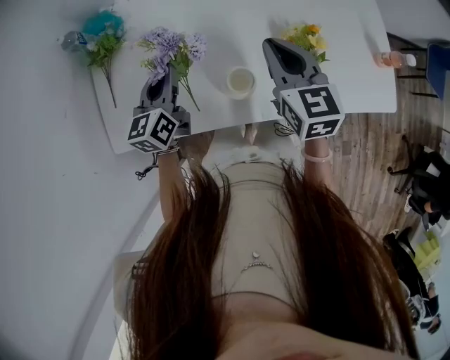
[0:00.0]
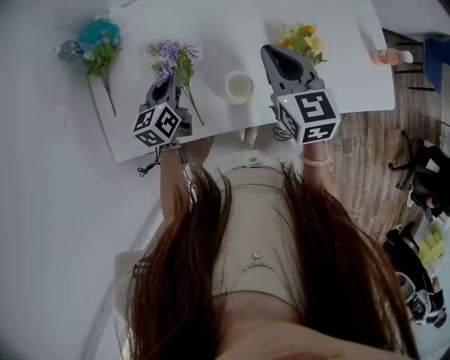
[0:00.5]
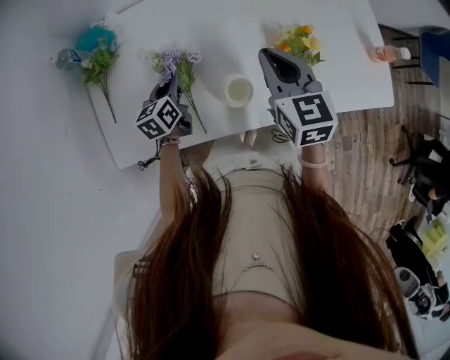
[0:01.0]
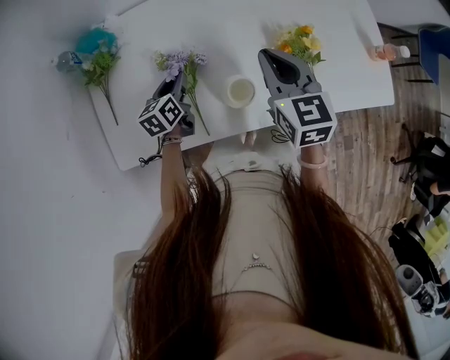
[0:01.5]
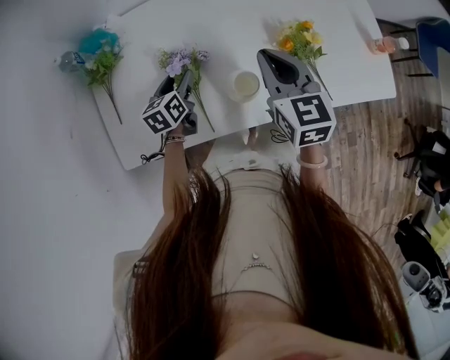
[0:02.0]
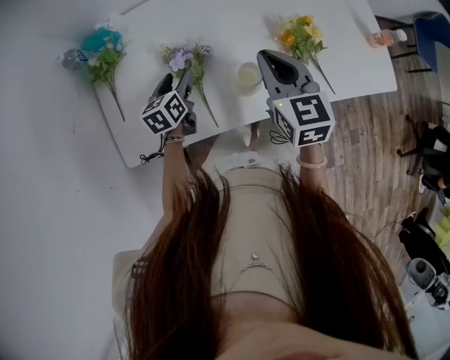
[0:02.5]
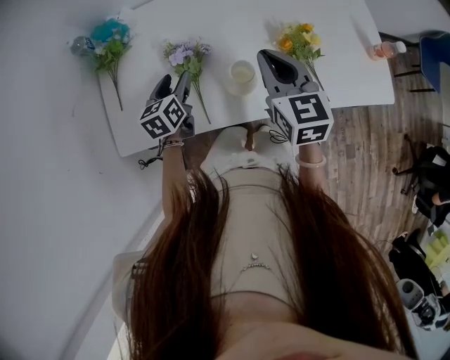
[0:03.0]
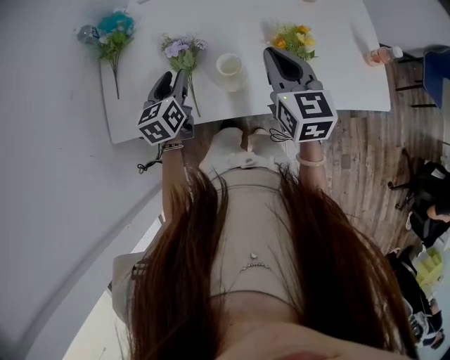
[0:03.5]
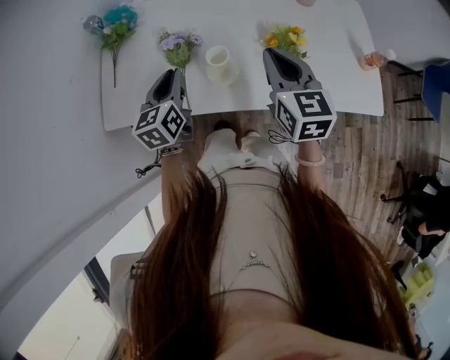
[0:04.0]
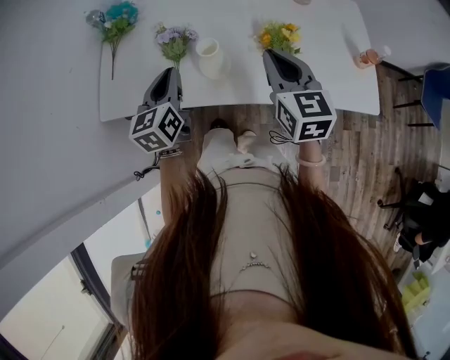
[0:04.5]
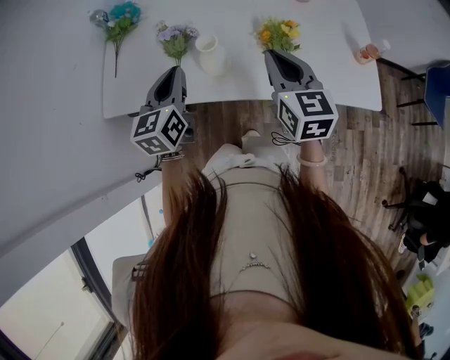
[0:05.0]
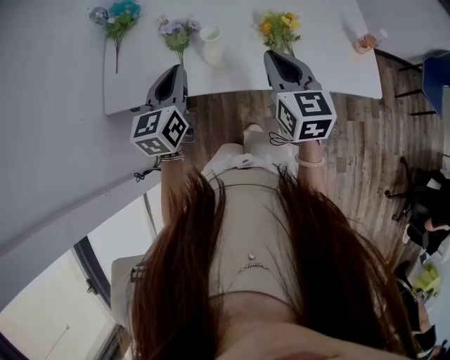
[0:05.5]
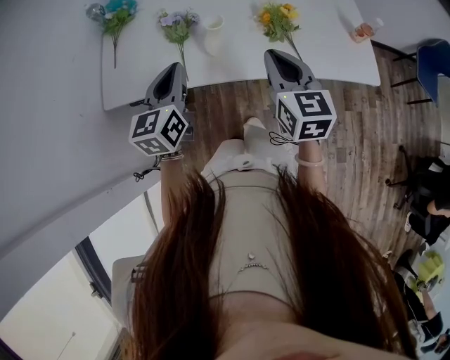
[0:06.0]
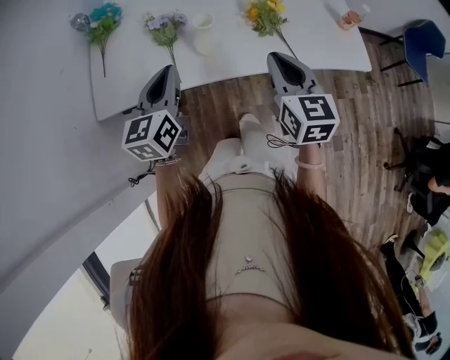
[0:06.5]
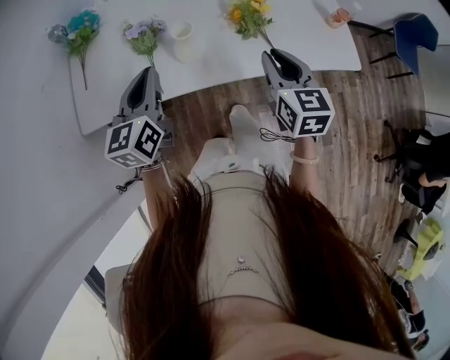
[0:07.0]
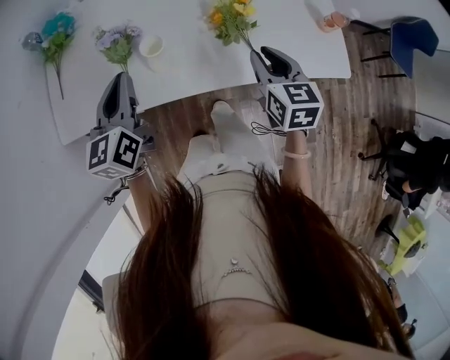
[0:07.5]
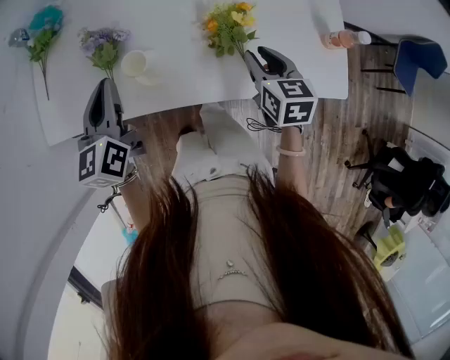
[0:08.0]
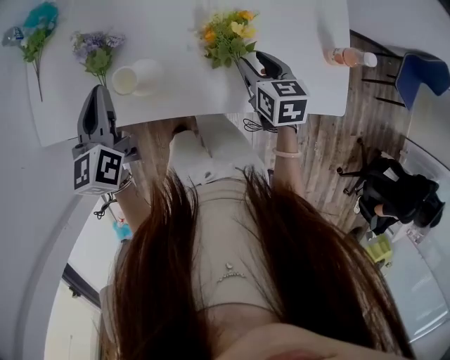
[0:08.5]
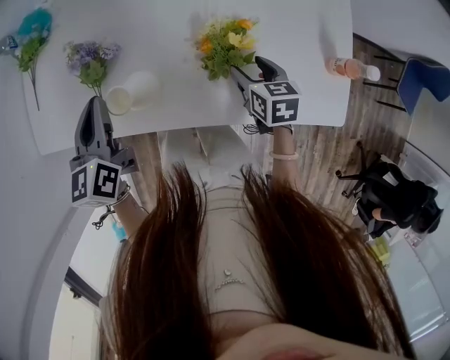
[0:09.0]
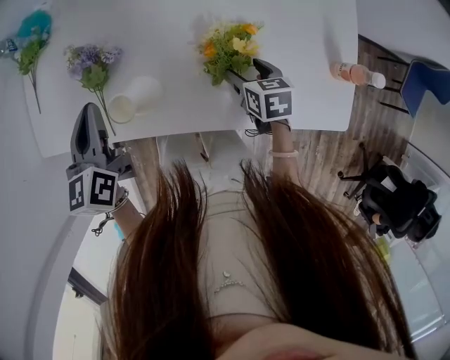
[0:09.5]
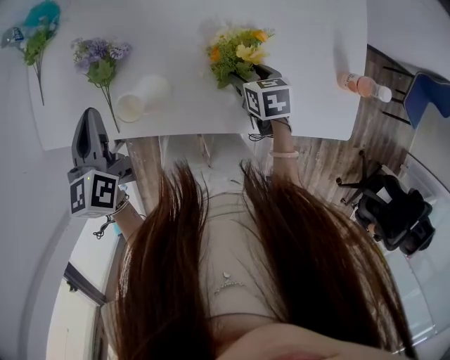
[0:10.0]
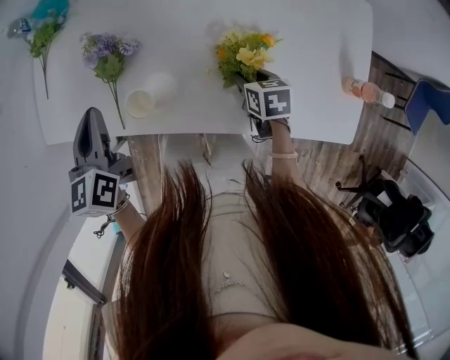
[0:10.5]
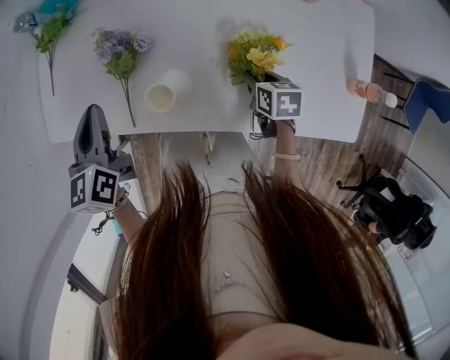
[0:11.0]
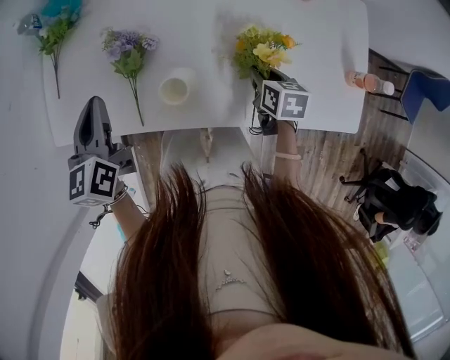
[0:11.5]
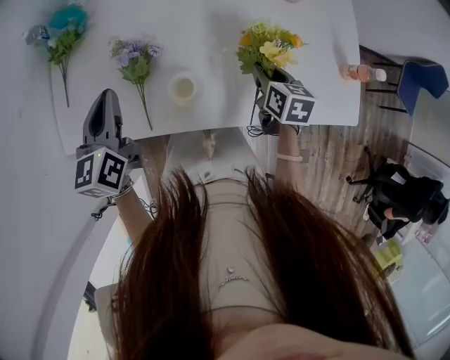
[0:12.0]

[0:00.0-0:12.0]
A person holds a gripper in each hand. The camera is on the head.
0.0 to 2.0 s: The left gripper goes about 10 cm downward, turns by approximately 20 degrees, and opens up.
2.0 to 4.0 s: The left gripper heads upward and backward, covering roughly 20 cm, and swivels some 20 degrees. The right gripper is displaced backward and to the right by some 10 cm.
4.0 to 6.0 s: The left gripper shifts some 15 cm backward and upward; the right gripper moves backward, roughly 10 cm.
6.0 to 8.0 s: The left gripper heads forward, covering approximately 15 cm. The right gripper travels forward, downward and to the right by approximately 25 cm, and rotates roughly 20 degrees.
8.0 to 10.0 s: The right gripper shifts roughly 15 cm downward and forward, swivels roughly 30 degrees, and opens up. Meanwhile the left gripper shifts by some 5 cm.
10.0 to 12.0 s: The left gripper shifts some 5 cm to the left. Meanwhile the right gripper heads upward, covering some 10 cm, swivels about 30 degrees, and closes its fingers.

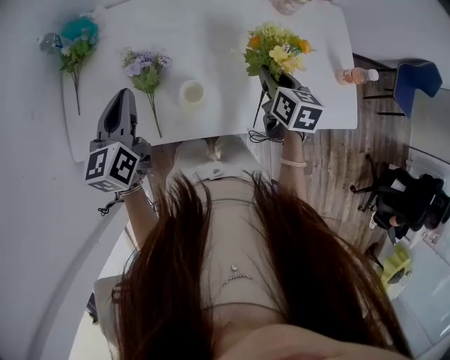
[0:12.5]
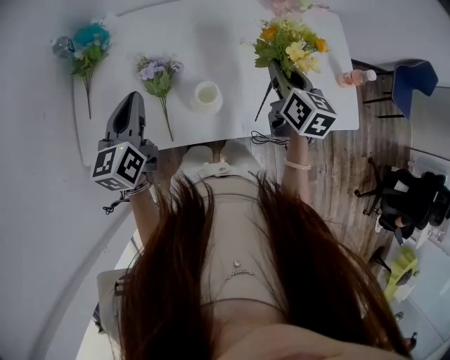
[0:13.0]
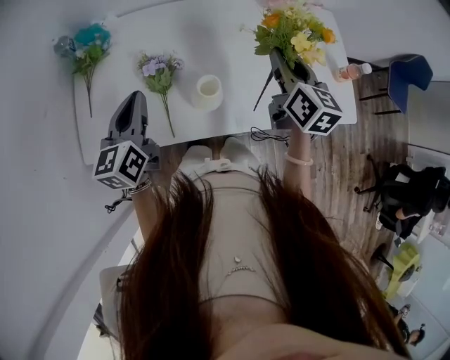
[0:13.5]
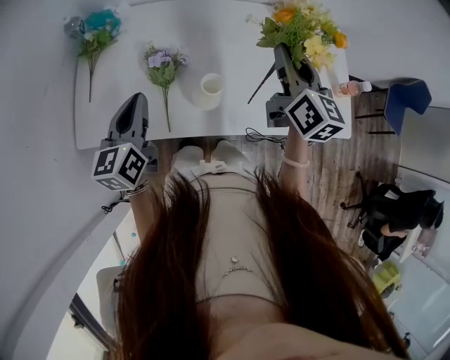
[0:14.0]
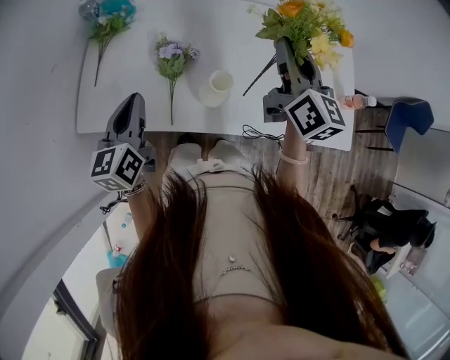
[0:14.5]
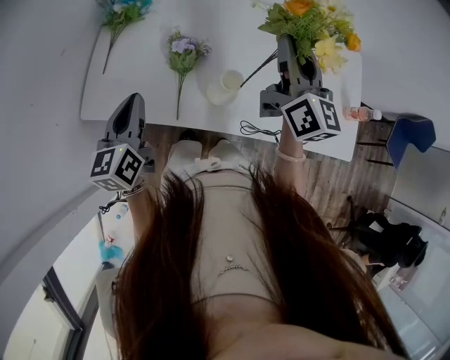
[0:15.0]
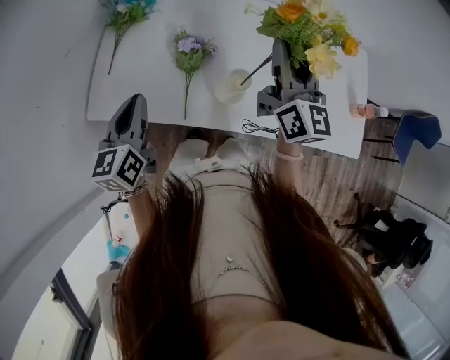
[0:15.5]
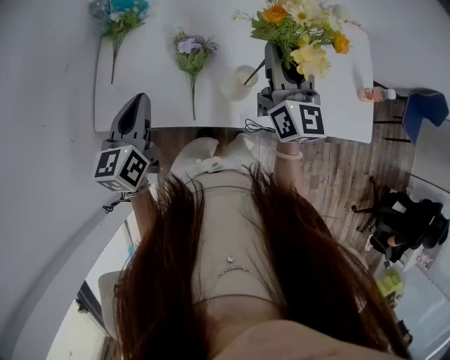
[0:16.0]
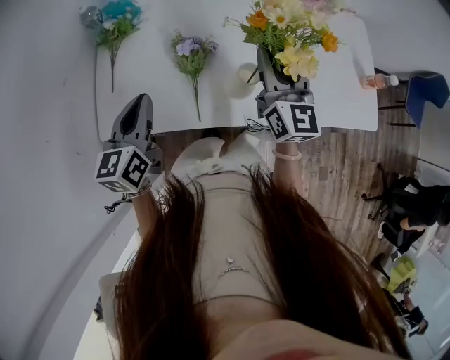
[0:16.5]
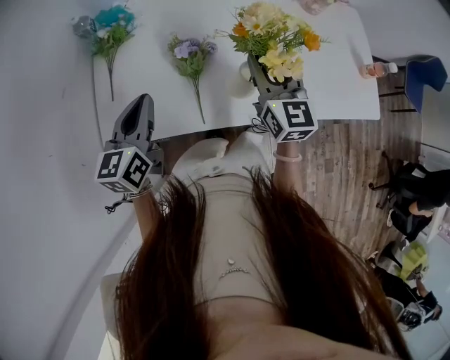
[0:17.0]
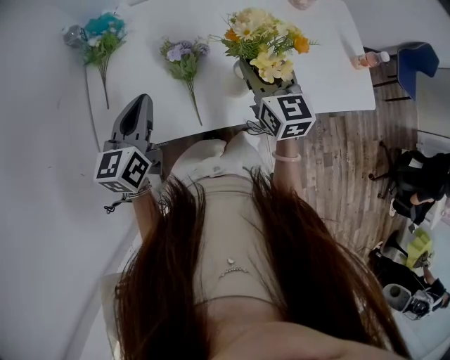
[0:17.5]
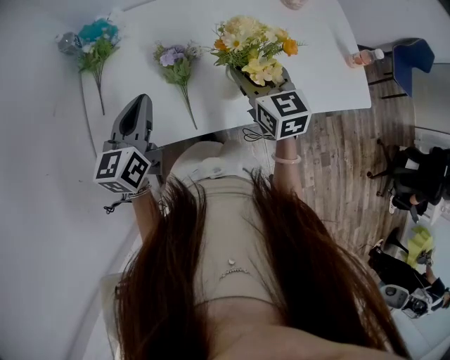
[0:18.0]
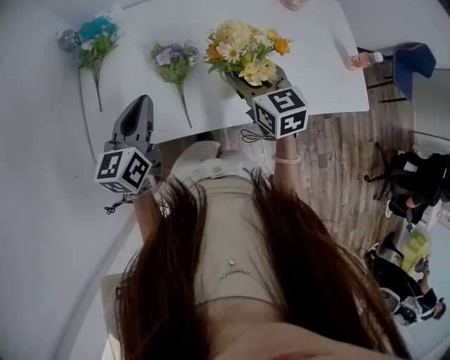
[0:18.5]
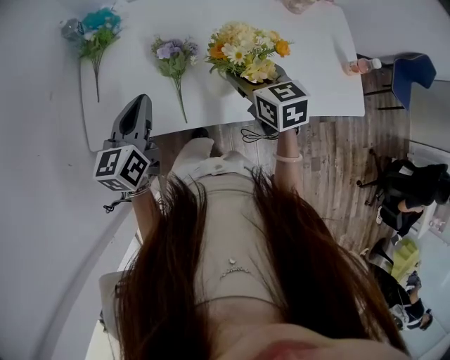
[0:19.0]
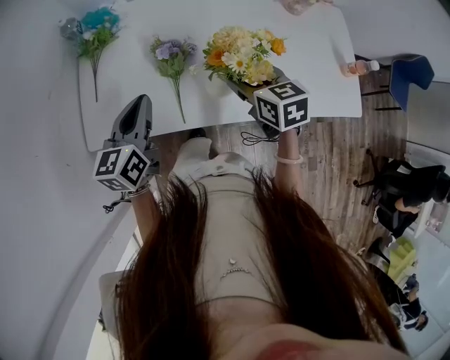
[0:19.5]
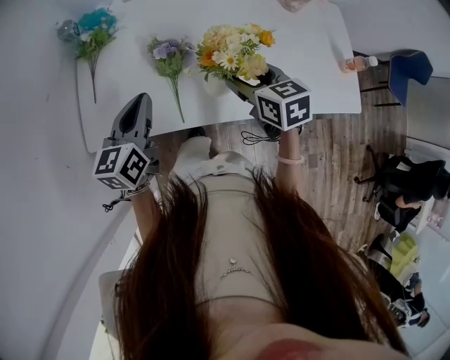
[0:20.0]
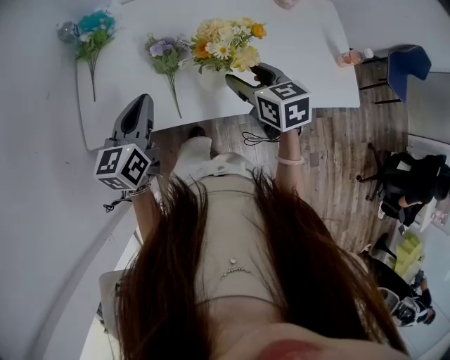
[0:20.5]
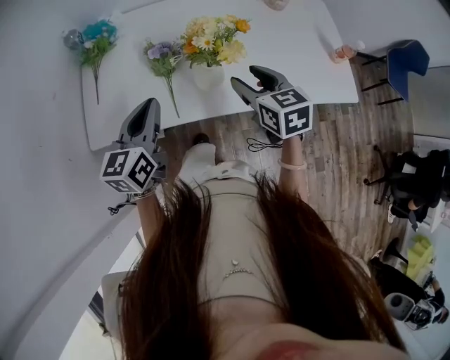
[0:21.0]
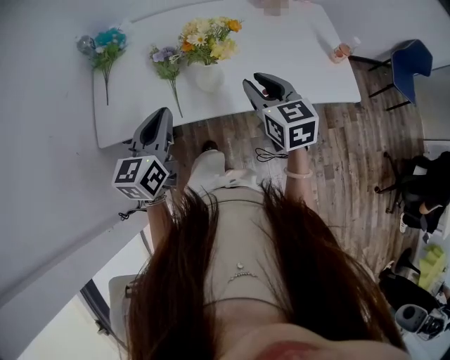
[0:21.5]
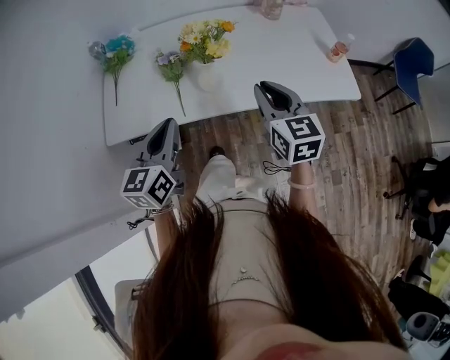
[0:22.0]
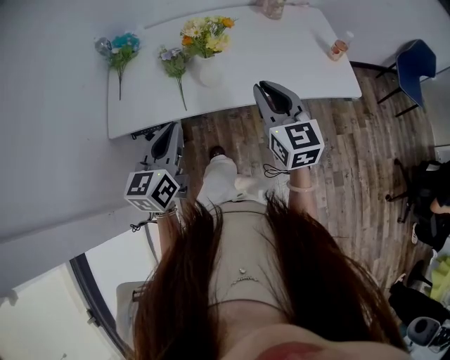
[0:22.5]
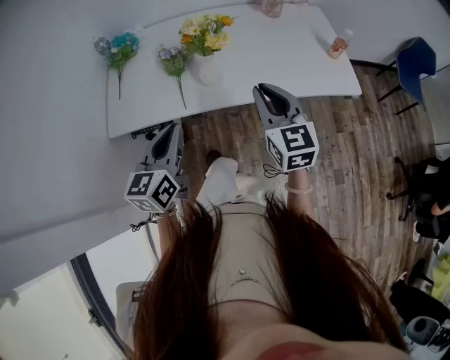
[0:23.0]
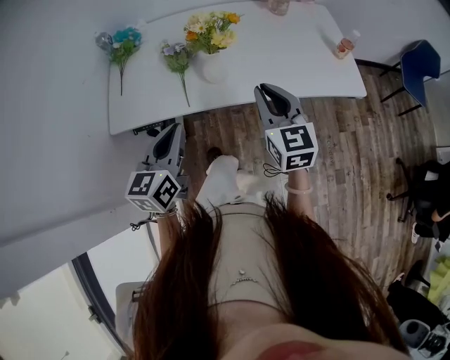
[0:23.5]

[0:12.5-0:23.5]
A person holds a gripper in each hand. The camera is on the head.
12.5 to 14.5 s: The right gripper moves upward and to the left, approximately 20 cm, and points its fingers some 40 degrees further upward. Meanwhile the left gripper shifts about 10 cm backward and to the left.
14.5 to 16.0 s: The right gripper travels to the left by approximately 5 cm.
16.0 to 18.0 s: The left gripper changes place by roughly 5 cm. The right gripper travels downward by some 10 cm, and swivels about 30 degrees.
18.0 to 20.0 s: The right gripper changes its angle by about 20 degrees.
20.0 to 21.5 s: The left gripper heads backward and to the right, covering about 15 cm. The right gripper goes approximately 15 cm backward, to the right and upward, and closes its fingers.
21.5 to 23.5 s: Both grippers move backward, some 10 cm.

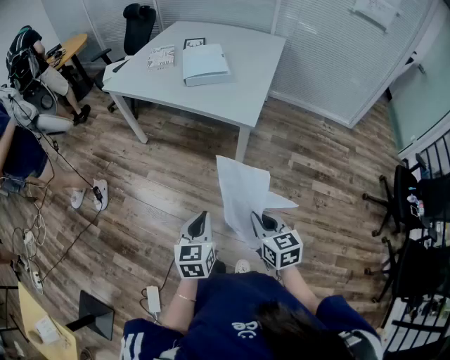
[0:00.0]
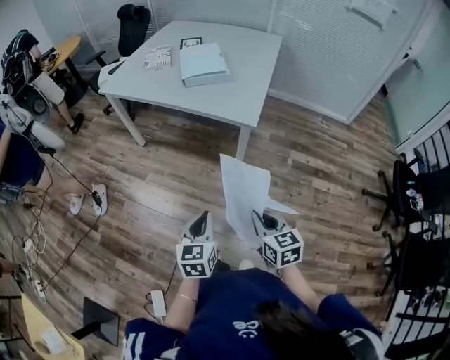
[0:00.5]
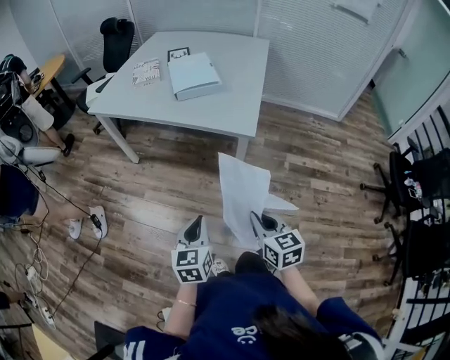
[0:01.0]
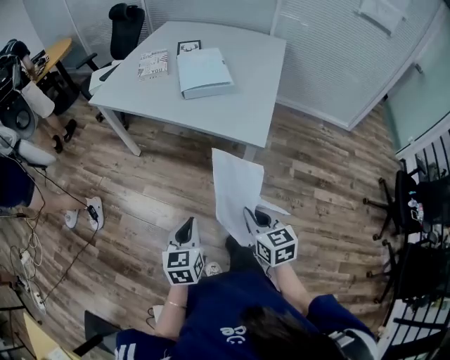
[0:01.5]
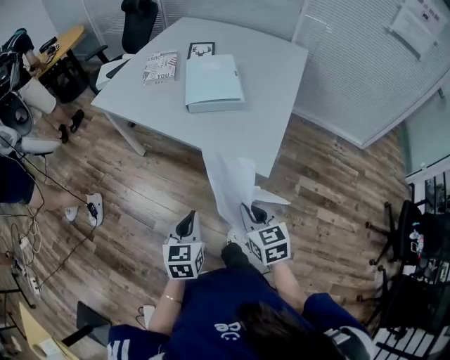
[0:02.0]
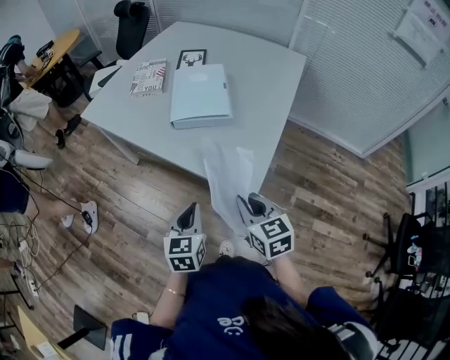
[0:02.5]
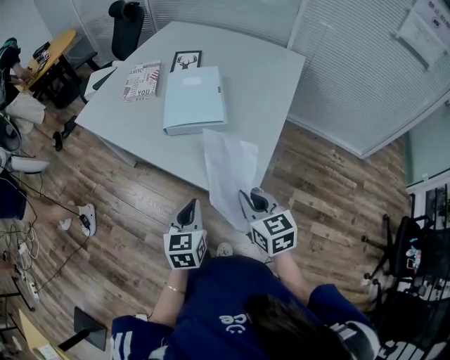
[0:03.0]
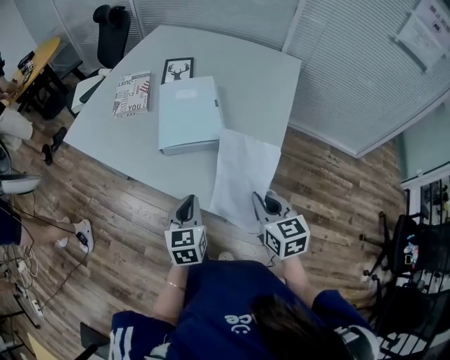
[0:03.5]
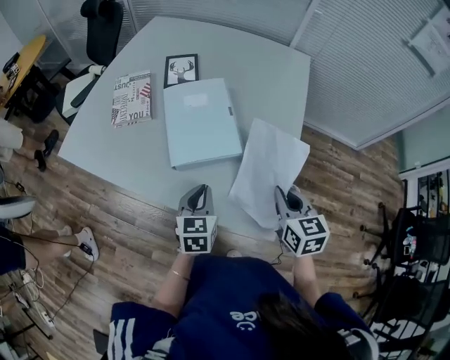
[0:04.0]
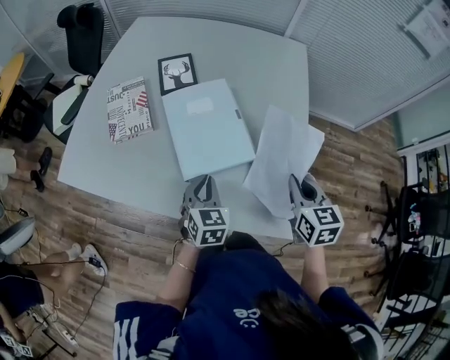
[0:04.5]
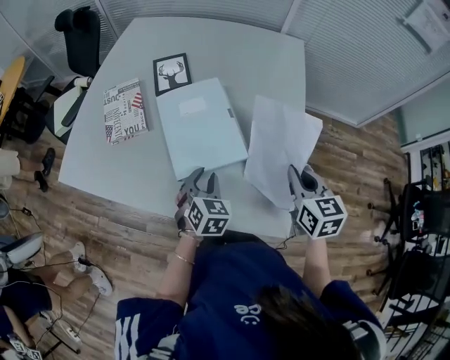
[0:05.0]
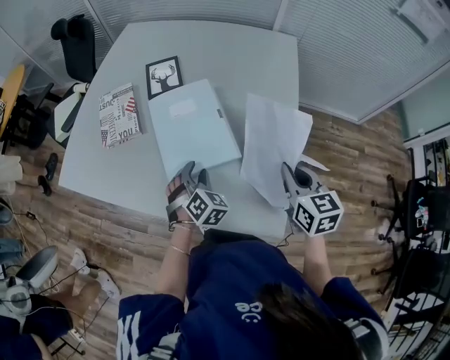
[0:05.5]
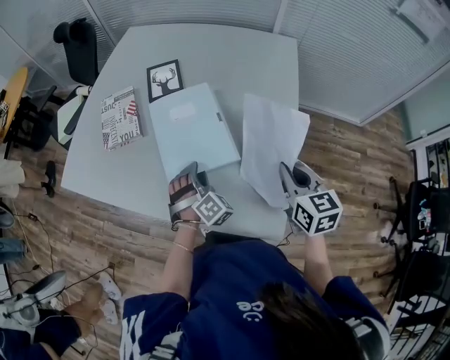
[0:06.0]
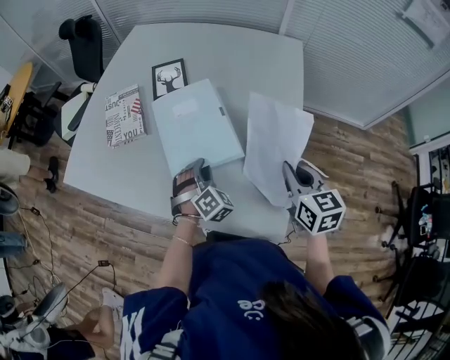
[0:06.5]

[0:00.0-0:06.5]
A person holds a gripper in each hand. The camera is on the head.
0.0 to 2.0 s: Both grippers move forward, some 30 cm.
2.0 to 4.5 s: Both grippers travel together forward, some 40 cm. The left gripper swivels some 20 degrees. The right gripper swivels roughly 30 degrees.
4.5 to 6.5 s: The right gripper moves roughly 5 cm; the left gripper moves to the right, about 5 cm, and rolls clockwise, seen from behind, by about 40 degrees.
